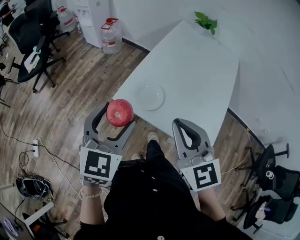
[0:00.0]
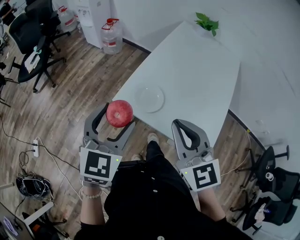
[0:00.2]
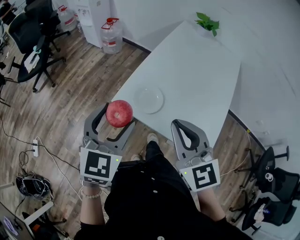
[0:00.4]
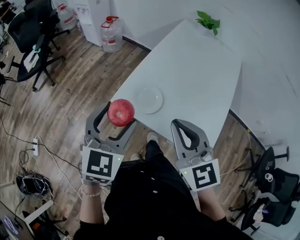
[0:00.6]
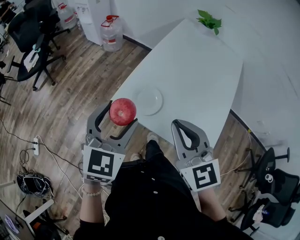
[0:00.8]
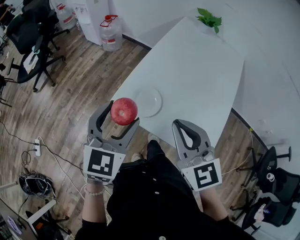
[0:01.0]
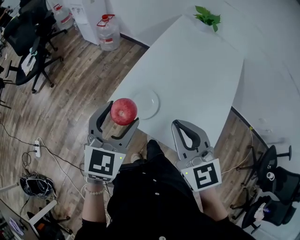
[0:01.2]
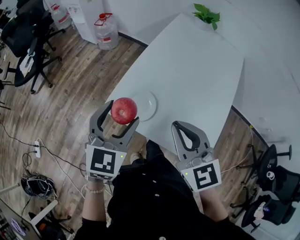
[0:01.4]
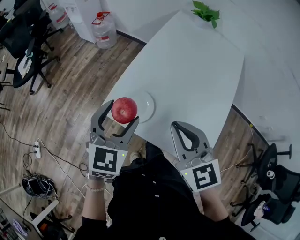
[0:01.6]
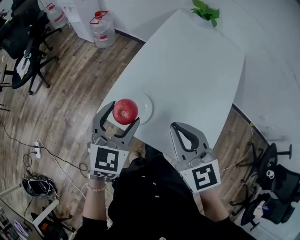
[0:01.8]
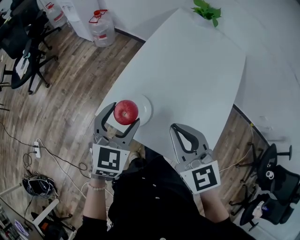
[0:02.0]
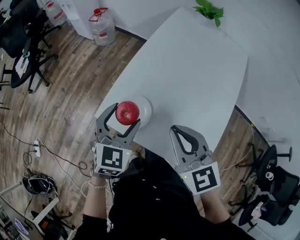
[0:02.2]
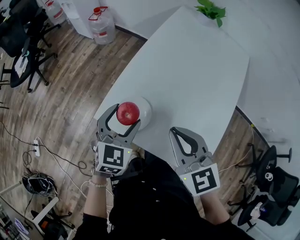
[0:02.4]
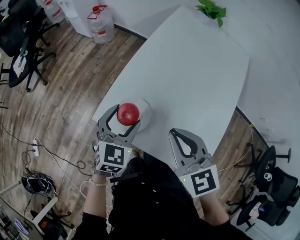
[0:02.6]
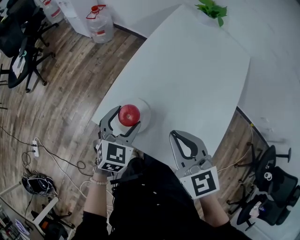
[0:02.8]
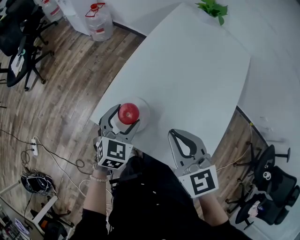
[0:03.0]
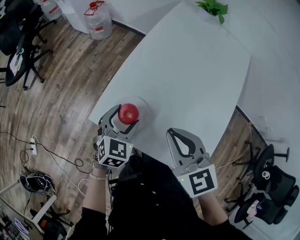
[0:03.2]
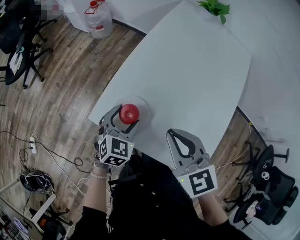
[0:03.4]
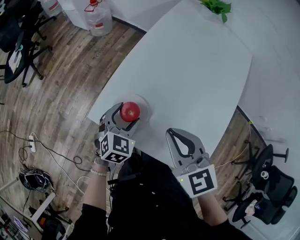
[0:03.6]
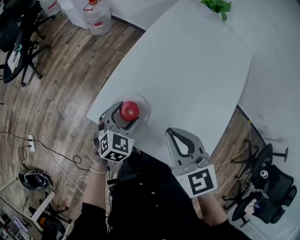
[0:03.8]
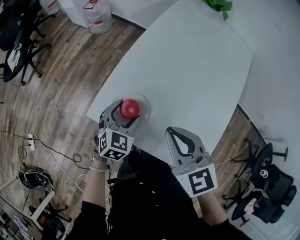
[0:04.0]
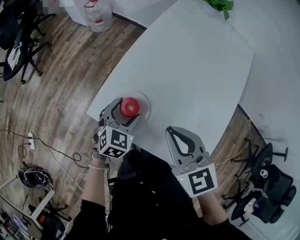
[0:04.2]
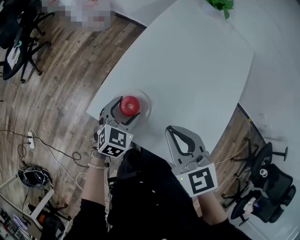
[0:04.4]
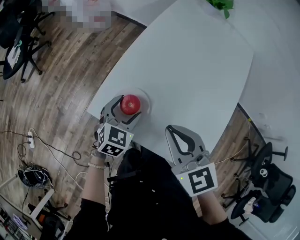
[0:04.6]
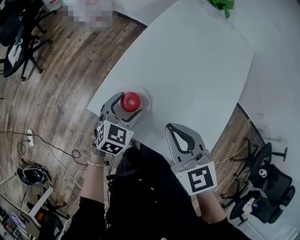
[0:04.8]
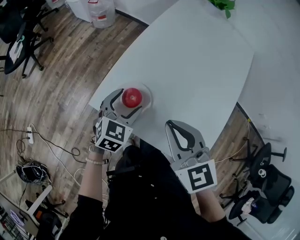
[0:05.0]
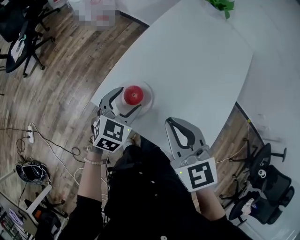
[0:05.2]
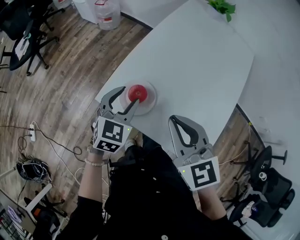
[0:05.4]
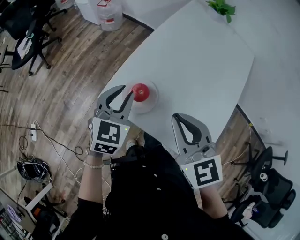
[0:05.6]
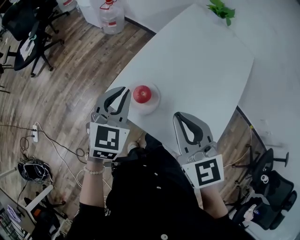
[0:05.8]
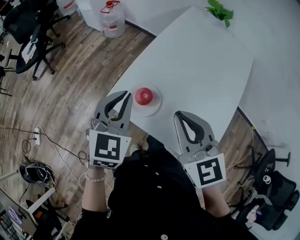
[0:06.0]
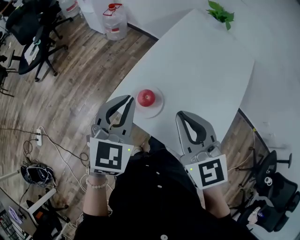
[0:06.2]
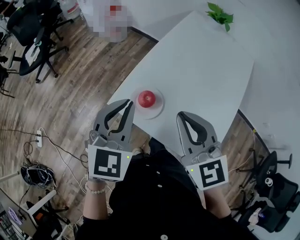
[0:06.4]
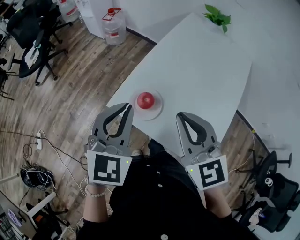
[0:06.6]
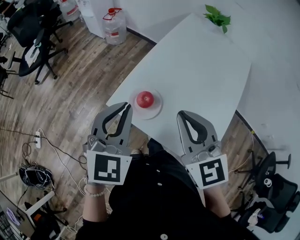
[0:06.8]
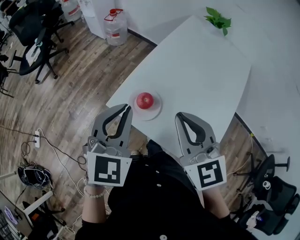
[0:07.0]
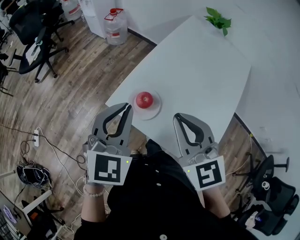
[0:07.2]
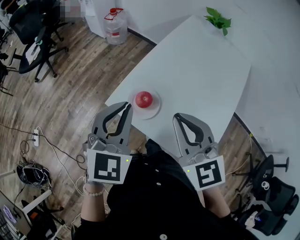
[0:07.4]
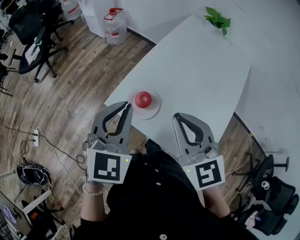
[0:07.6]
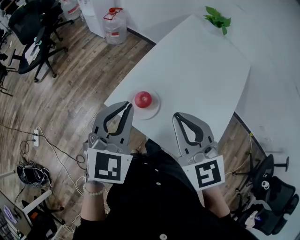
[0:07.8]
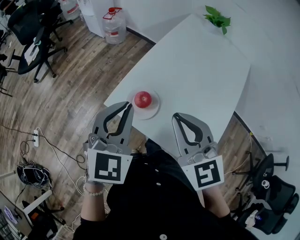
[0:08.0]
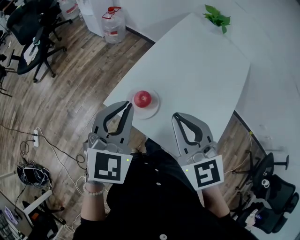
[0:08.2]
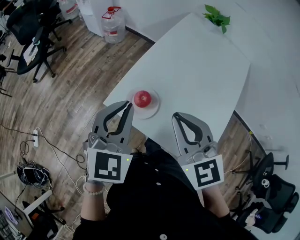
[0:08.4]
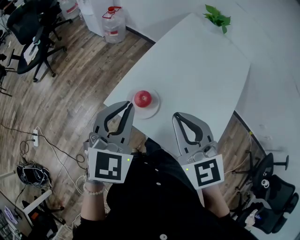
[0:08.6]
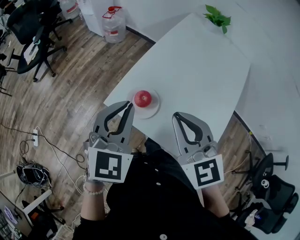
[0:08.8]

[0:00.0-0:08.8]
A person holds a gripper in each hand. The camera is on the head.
0:00.0 to 0:01.4: The two grippers go approximately 10 cm forward and to the right.
0:01.4 to 0:03.0: The right gripper travels downward and forward by roughly 10 cm; the left gripper heads downward, covering some 15 cm.
0:03.0 to 0:04.4: The left gripper goes approximately 5 cm downward.
0:04.4 to 0:05.8: The left gripper is displaced upward by roughly 15 cm, and closes. Meanwhile the right gripper moves upward, roughly 5 cm.
0:05.8 to 0:07.4: The left gripper heads upward and backward, covering about 10 cm.
0:07.4 to 0:08.8: Both grippers stay about where they are.

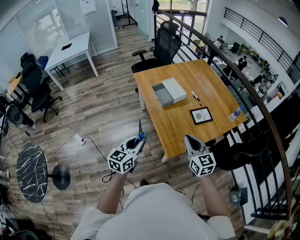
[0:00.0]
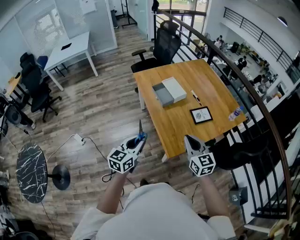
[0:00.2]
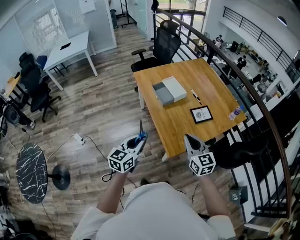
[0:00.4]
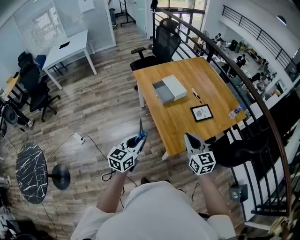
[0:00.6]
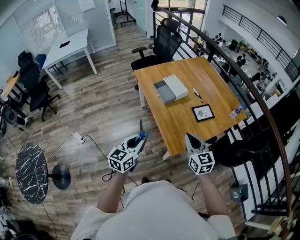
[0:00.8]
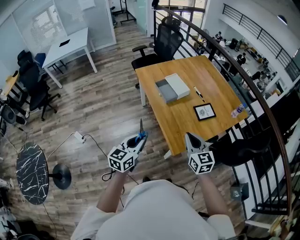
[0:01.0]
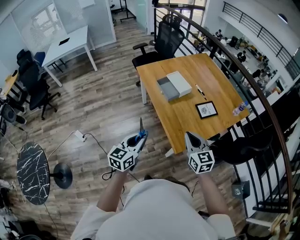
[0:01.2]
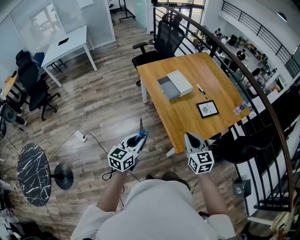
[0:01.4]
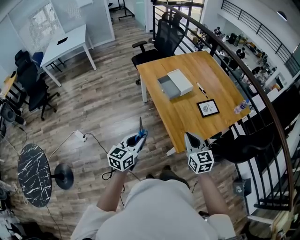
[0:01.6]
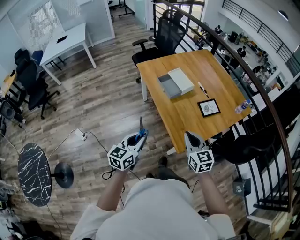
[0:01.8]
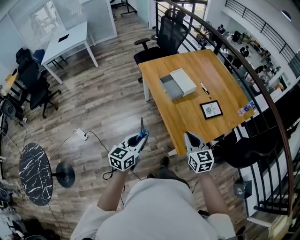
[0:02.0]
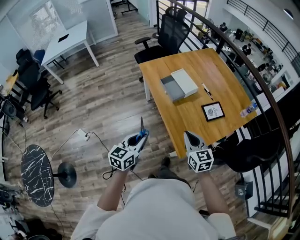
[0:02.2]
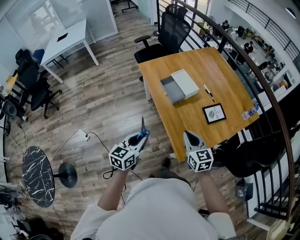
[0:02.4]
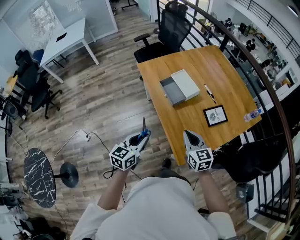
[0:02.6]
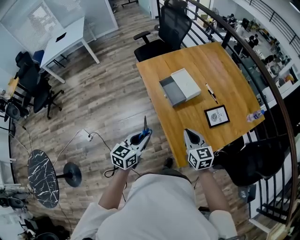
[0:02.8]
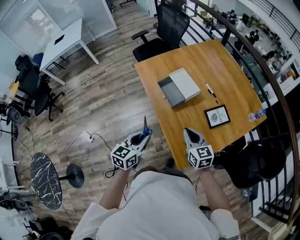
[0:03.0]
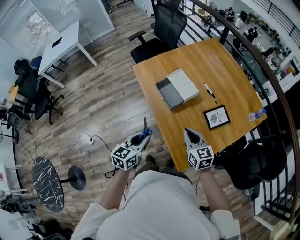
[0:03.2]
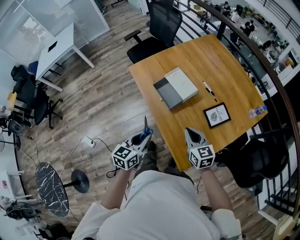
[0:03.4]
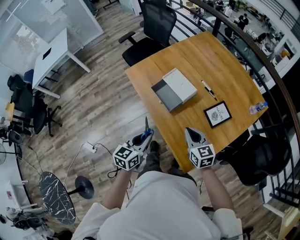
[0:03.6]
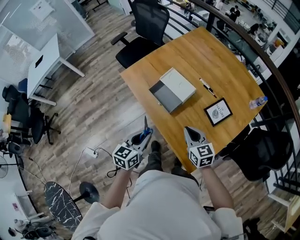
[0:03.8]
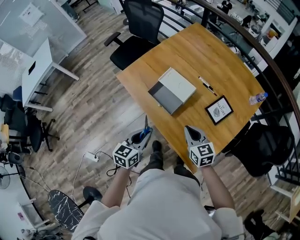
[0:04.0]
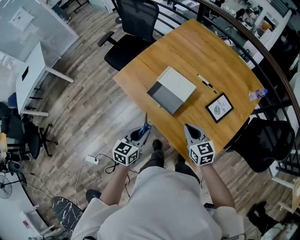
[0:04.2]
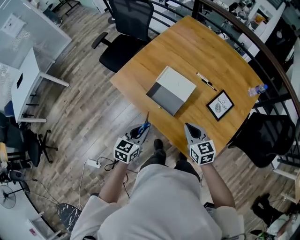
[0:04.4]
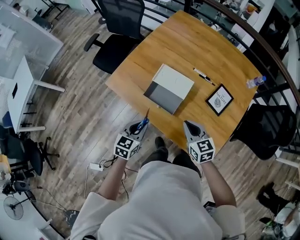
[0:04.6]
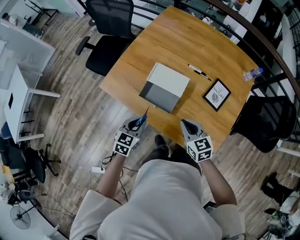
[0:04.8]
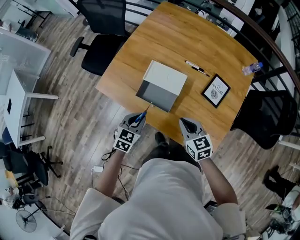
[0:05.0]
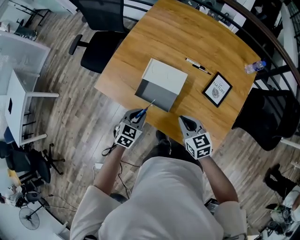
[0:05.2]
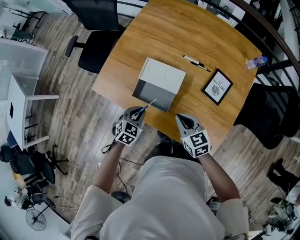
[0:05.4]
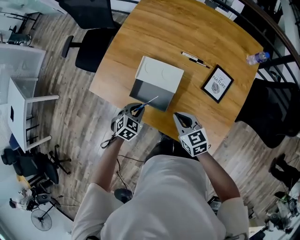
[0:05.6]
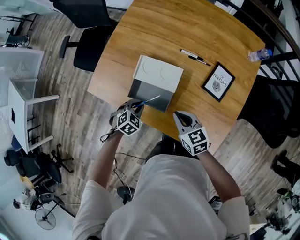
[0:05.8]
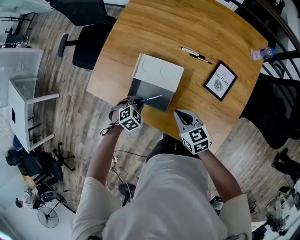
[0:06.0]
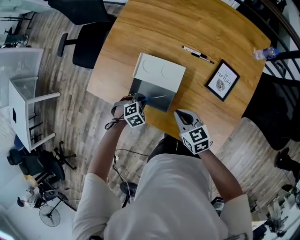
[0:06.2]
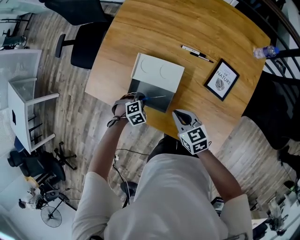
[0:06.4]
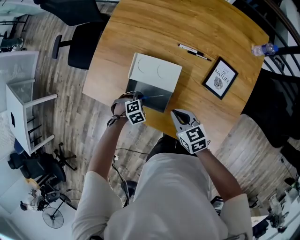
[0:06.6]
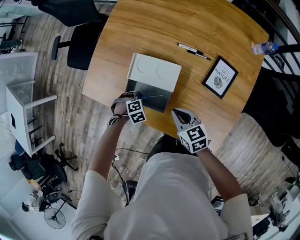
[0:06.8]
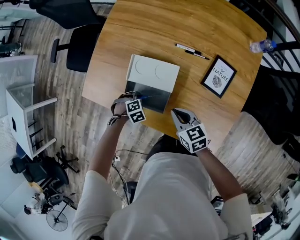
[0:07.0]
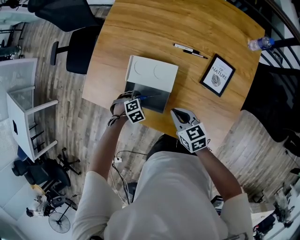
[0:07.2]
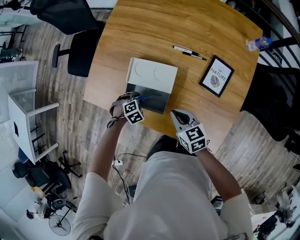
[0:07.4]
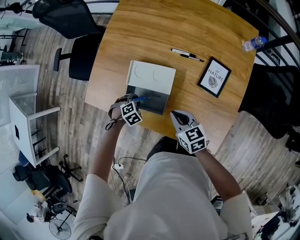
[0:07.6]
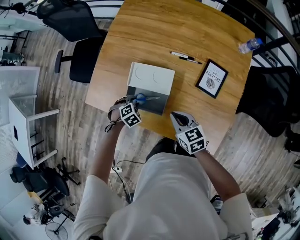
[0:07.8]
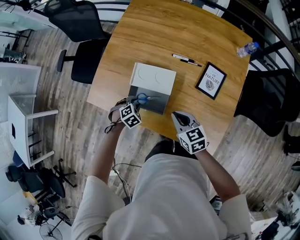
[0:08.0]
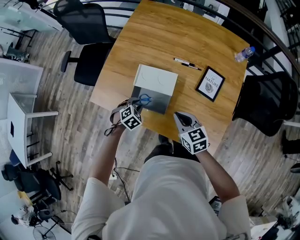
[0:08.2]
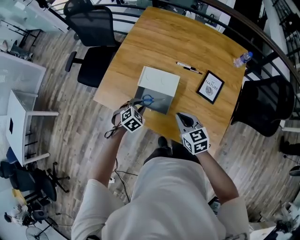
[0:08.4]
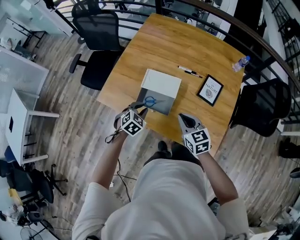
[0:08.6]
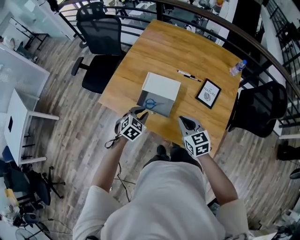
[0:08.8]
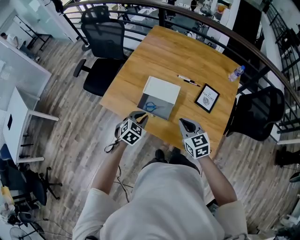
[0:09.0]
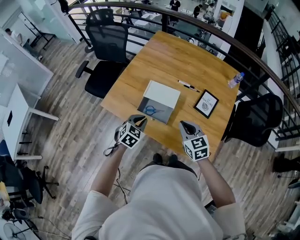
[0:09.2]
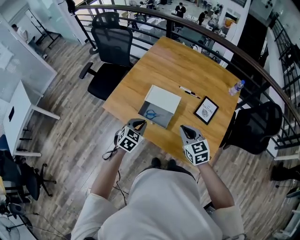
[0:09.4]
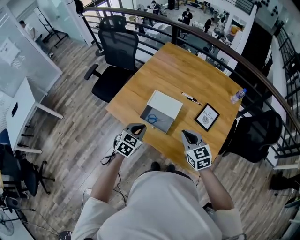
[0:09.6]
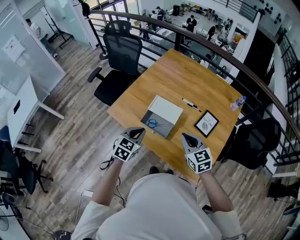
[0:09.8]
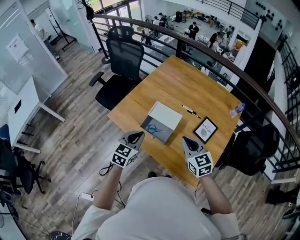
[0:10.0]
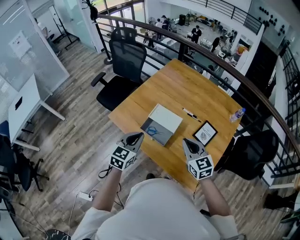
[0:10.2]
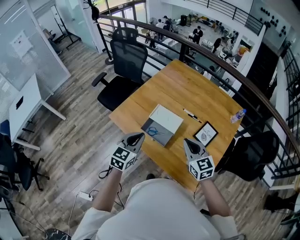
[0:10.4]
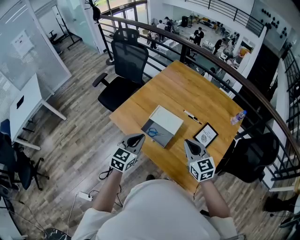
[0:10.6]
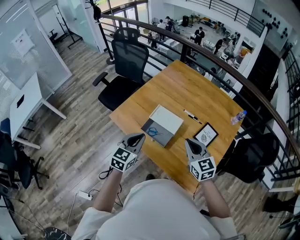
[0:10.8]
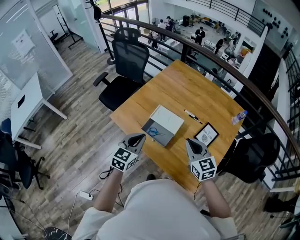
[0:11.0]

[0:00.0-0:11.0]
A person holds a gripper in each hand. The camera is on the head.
0:00.0 to 0:01.6: Both grippers move to the left, about 10 cm.
0:01.6 to 0:03.2: Both grippers move forward, some 25 cm.
0:03.2 to 0:04.8: The right gripper changes place by about 15 cm, and changes its angle by roughly 30 degrees. Meanwhile the left gripper shifts by approximately 30 cm, and turns by about 40 degrees.
0:04.8 to 0:06.2: The right gripper shifts approximately 10 cm downward. Meanwhile the left gripper is displaced downward by roughly 20 cm, and tilts its fingers some 40 degrees downward.
0:06.2 to 0:07.8: The grippers make only small movements.
0:07.8 to 0:09.4: The left gripper heads upward, covering roughly 25 cm, angles its fingers upward, by roughly 30 degrees, and closes up. Meanwhile the right gripper goes approximately 15 cm upward, and rotates approximately 20 degrees.
0:09.4 to 0:11.0: The grippers both shift upward by approximately 10 cm. The left gripper turns by approximately 30 degrees.

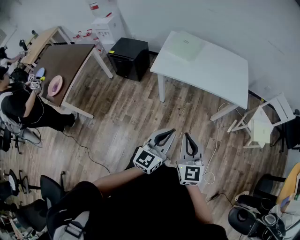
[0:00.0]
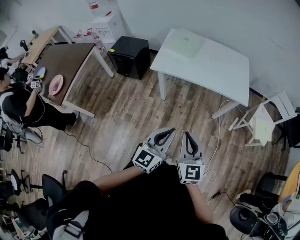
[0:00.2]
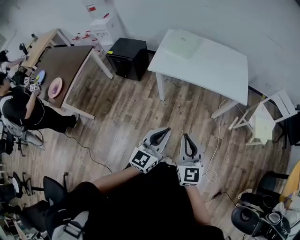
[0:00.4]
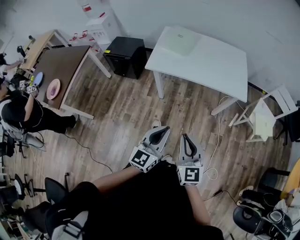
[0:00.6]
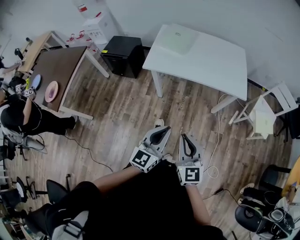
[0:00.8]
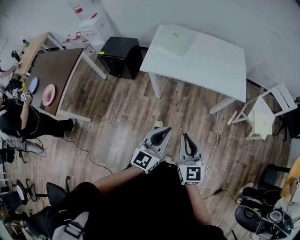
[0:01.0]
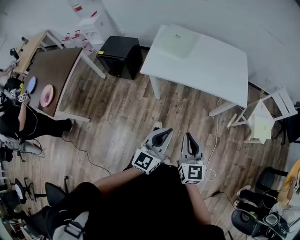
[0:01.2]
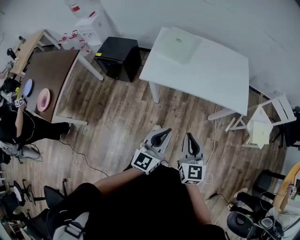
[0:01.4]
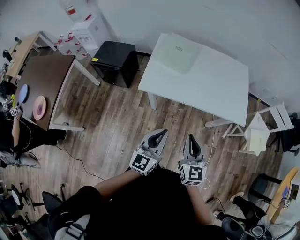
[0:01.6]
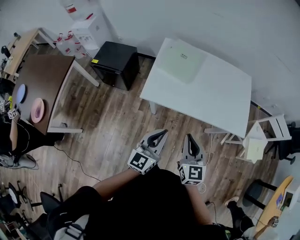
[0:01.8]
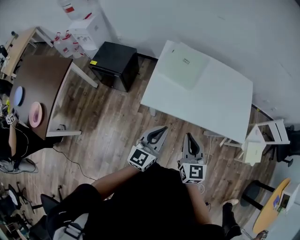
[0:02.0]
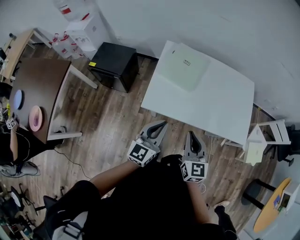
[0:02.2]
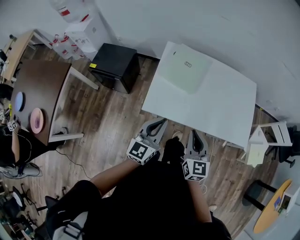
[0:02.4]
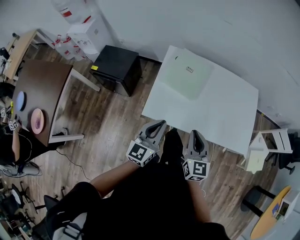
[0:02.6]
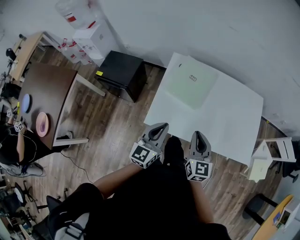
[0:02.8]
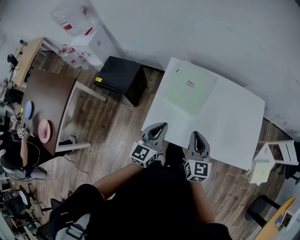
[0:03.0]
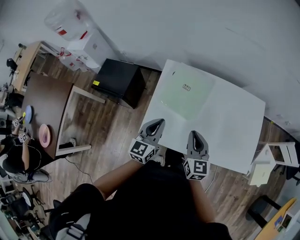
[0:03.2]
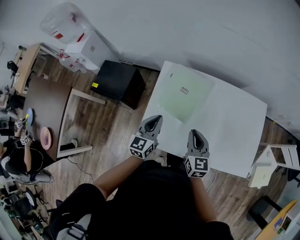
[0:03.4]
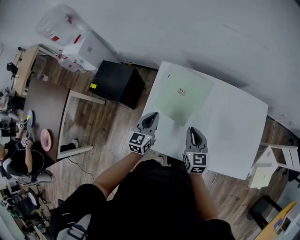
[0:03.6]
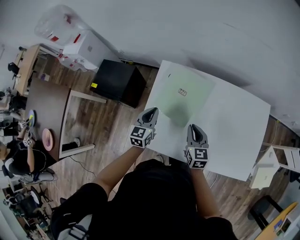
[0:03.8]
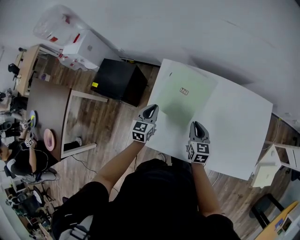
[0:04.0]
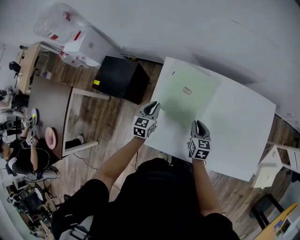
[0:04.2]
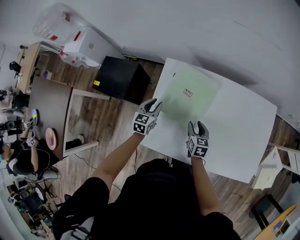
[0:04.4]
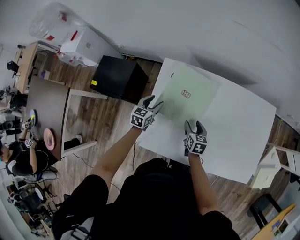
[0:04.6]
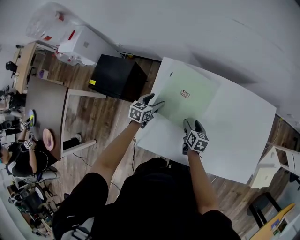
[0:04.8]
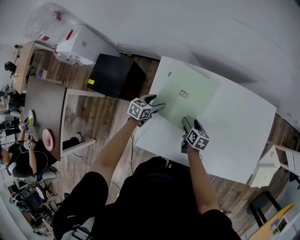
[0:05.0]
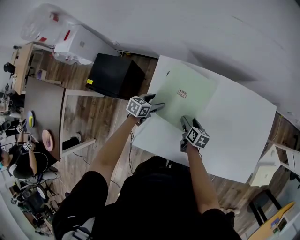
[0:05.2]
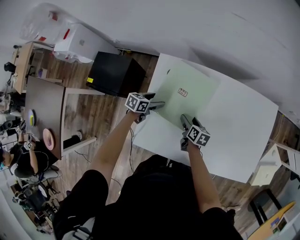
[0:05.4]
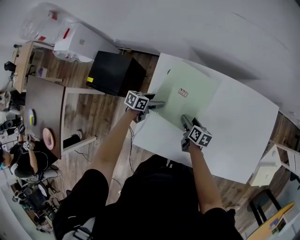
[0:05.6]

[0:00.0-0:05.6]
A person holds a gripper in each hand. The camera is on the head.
0:00.0 to 0:01.4: Both grippers travel together forward, about 15 cm.
0:01.4 to 0:02.8: The right gripper heads forward, covering roughly 35 cm; the left gripper goes roughly 40 cm forward and to the left.
0:02.8 to 0:04.2: The two grippers go roughly 30 cm forward and downward. The right gripper rotates roughly 20 degrees. The left gripper turns by roughly 30 degrees.
0:04.2 to 0:05.6: Both grippers travel together downward, roughly 10 cm. The left gripper changes its angle by some 50 degrees, and opens up. The right gripper rotates some 30 degrees, and opens its fingers.
